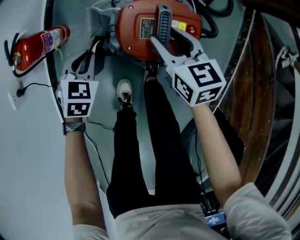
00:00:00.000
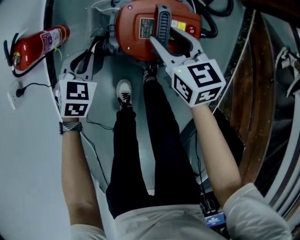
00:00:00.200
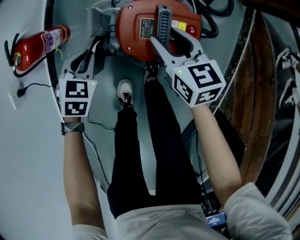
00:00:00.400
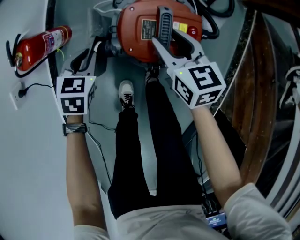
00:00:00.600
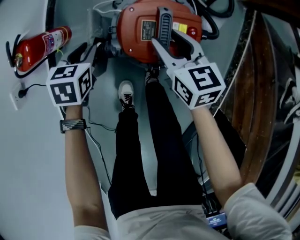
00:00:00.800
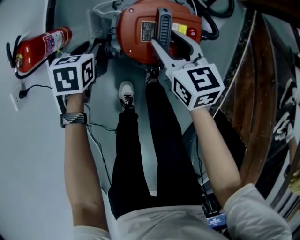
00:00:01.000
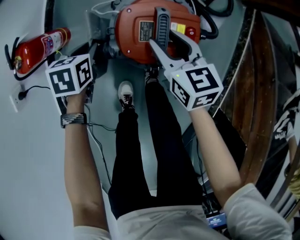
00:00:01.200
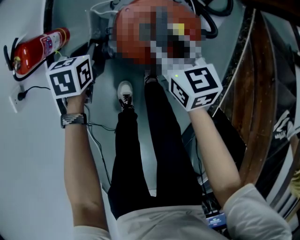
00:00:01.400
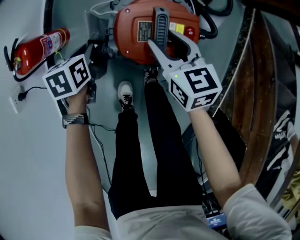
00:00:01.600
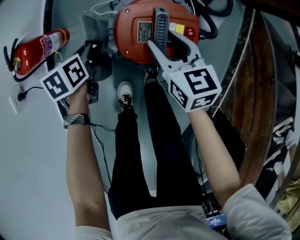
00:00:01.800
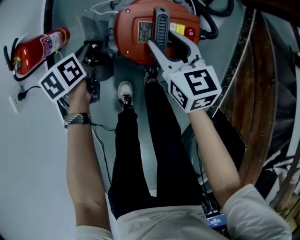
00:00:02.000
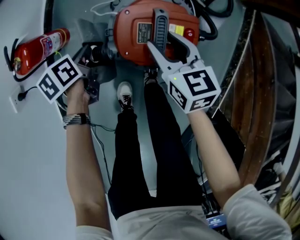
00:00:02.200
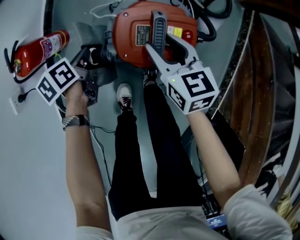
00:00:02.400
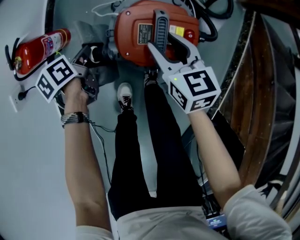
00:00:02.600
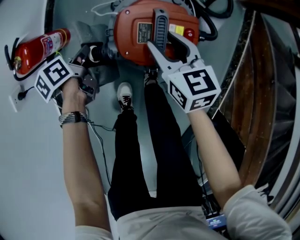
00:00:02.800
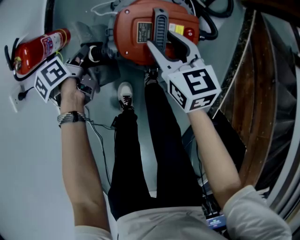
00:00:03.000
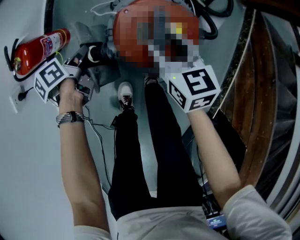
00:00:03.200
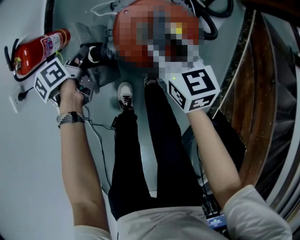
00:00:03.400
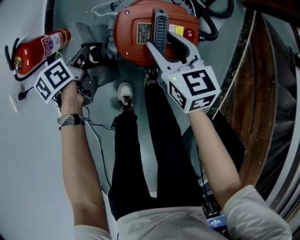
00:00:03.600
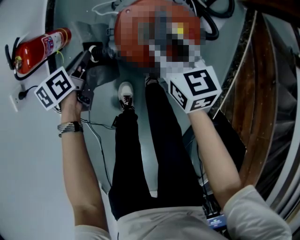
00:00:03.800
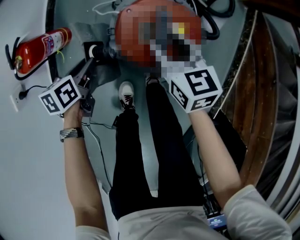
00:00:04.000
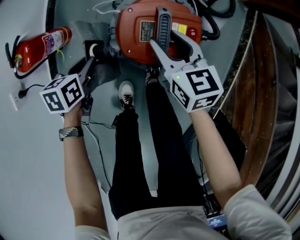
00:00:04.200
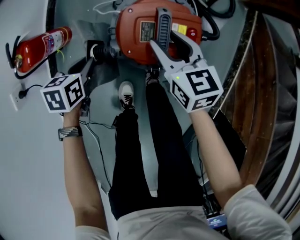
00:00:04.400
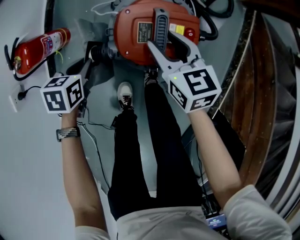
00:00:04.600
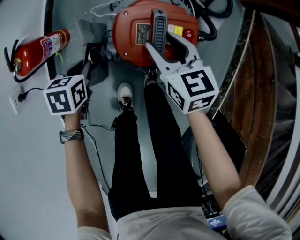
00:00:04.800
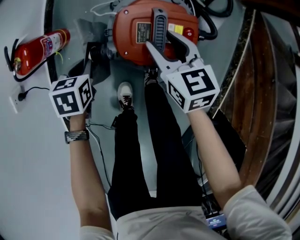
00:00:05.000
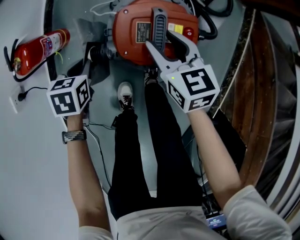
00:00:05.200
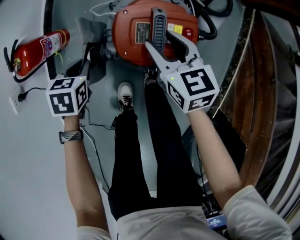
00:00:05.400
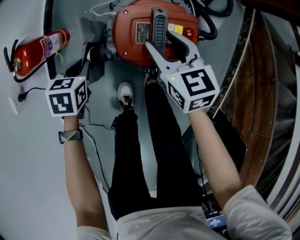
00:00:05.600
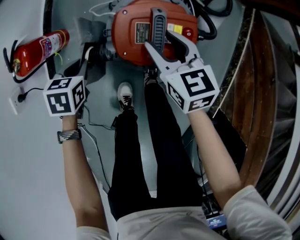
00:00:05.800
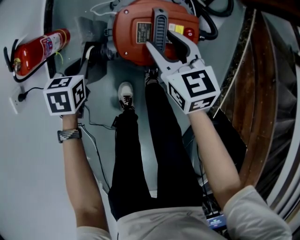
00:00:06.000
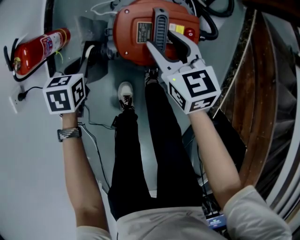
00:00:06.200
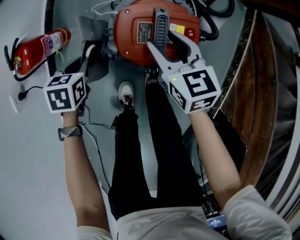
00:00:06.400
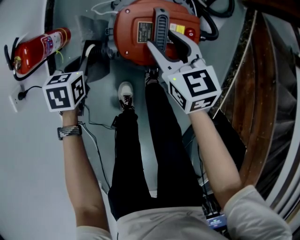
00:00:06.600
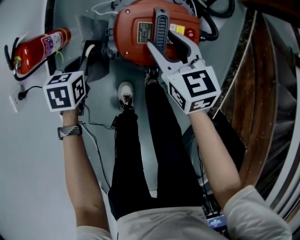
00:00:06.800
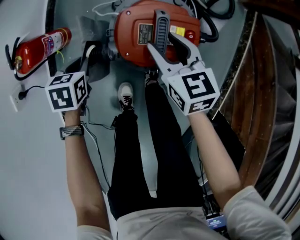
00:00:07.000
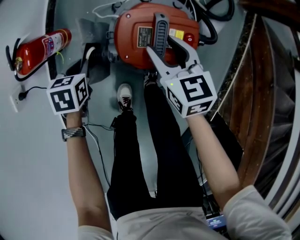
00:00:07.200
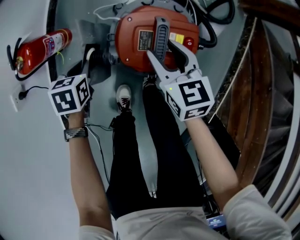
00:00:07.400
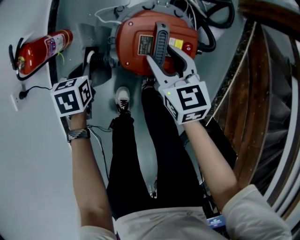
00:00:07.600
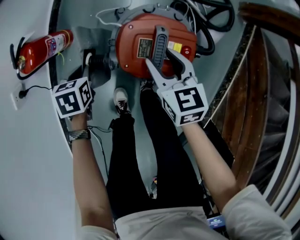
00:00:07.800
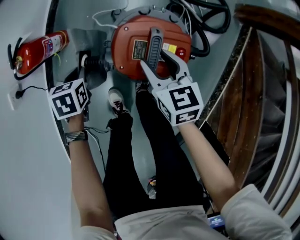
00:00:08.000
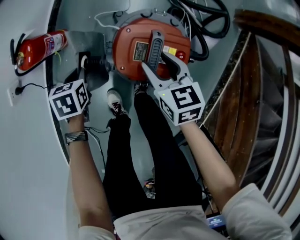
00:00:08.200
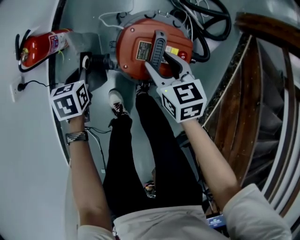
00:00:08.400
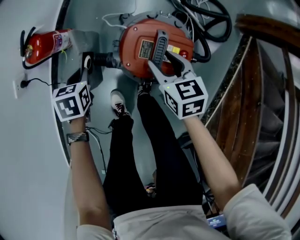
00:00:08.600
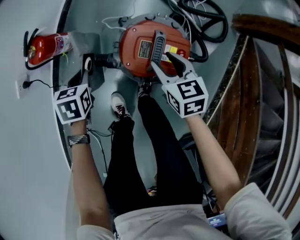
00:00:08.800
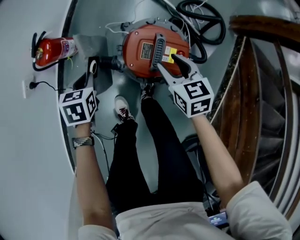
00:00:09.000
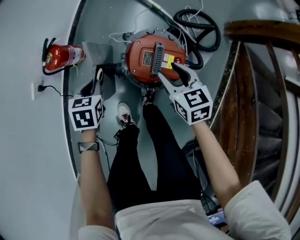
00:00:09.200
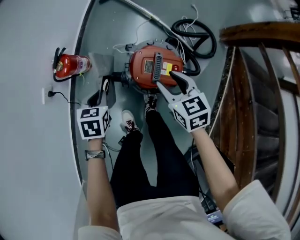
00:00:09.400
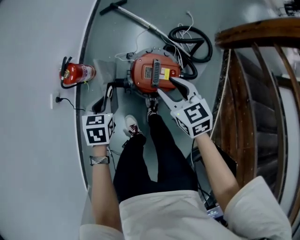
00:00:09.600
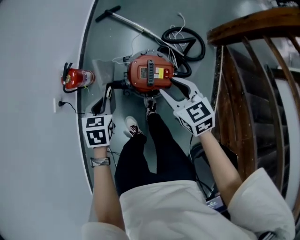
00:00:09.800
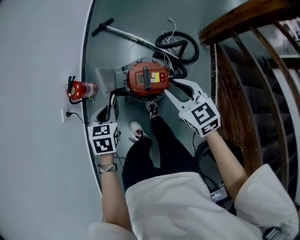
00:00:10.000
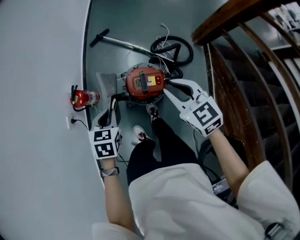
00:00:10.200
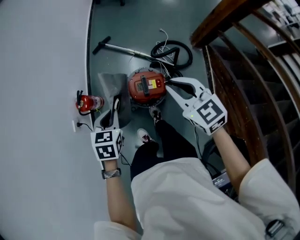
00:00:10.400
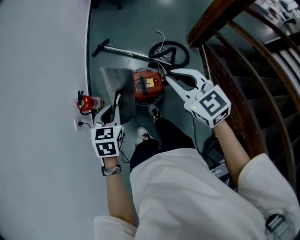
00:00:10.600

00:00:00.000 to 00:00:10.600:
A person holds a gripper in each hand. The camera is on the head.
00:00:00.000 to 00:00:01.600: The left gripper swivels approximately 40 degrees, and opens and closes again.
00:00:01.600 to 00:00:03.000: The left gripper swivels some 40 degrees.
00:00:03.000 to 00:00:04.600: The left gripper twists roughly 50 degrees clockwise, seen from behind.
00:00:04.600 to 00:00:07.600: There are only small adjustments of the grippers.
00:00:07.600 to 00:00:09.000: The left gripper heads upward, covering about 10 cm.
00:00:09.000 to 00:00:10.600: Both grippers travel together upward, approximately 40 cm. The left gripper swivels approximately 30 degrees. The right gripper rotates about 30 degrees, and closes up.

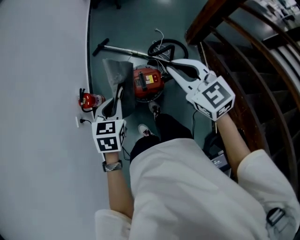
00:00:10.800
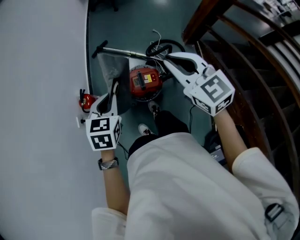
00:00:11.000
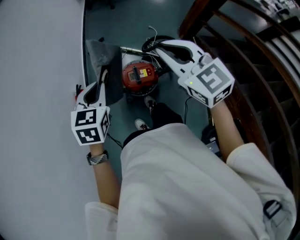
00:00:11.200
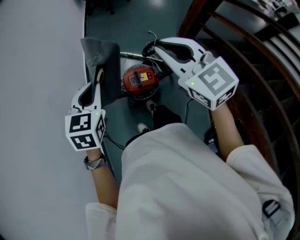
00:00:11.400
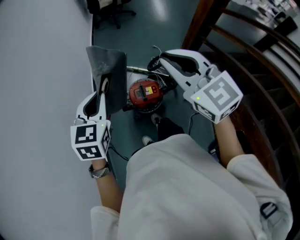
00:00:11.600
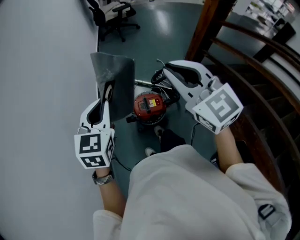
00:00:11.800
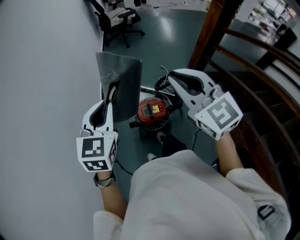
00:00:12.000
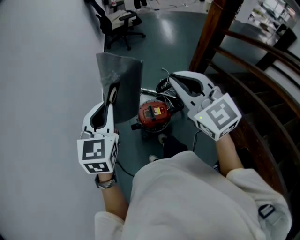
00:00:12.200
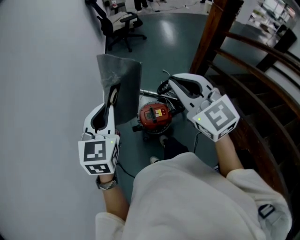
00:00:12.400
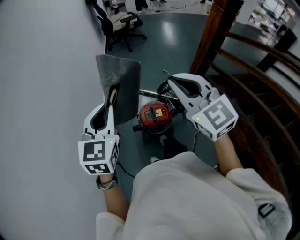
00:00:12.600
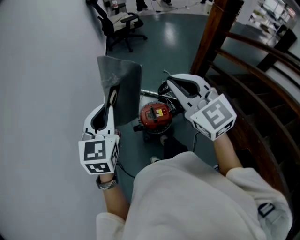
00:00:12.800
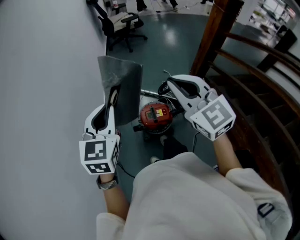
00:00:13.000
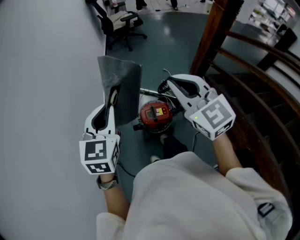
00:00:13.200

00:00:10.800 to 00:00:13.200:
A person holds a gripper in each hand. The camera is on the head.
00:00:10.800 to 00:00:12.000: The grippers both shift upward by approximately 20 cm. The left gripper rotates some 30 degrees.
00:00:12.000 to 00:00:13.200: The grippers move only a little.

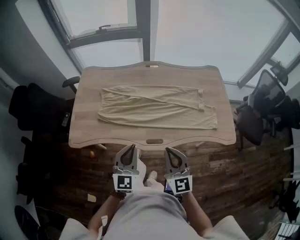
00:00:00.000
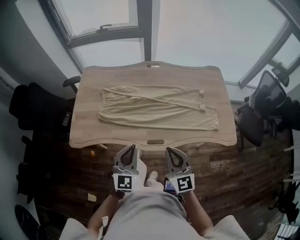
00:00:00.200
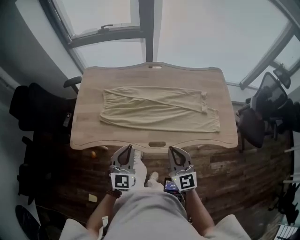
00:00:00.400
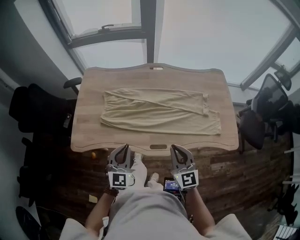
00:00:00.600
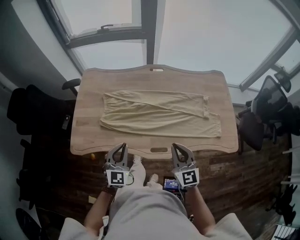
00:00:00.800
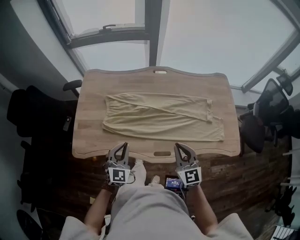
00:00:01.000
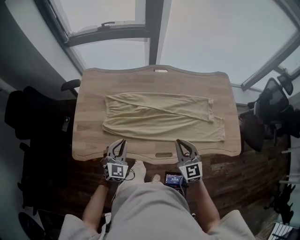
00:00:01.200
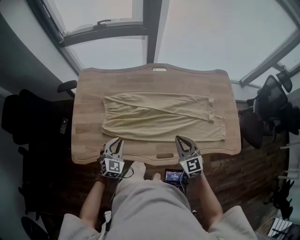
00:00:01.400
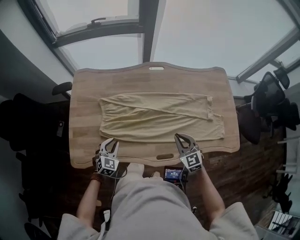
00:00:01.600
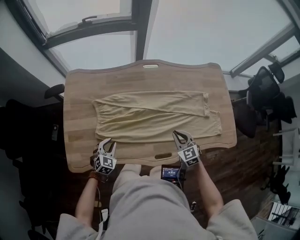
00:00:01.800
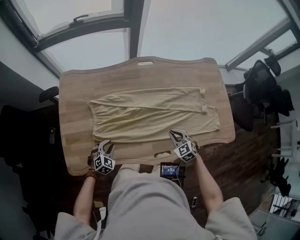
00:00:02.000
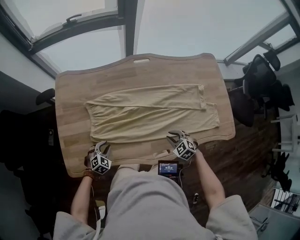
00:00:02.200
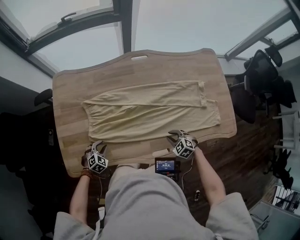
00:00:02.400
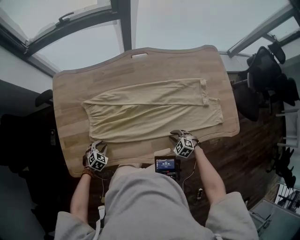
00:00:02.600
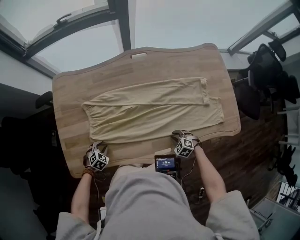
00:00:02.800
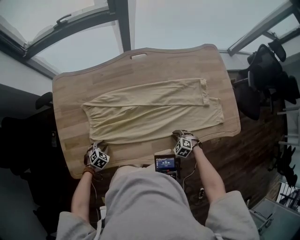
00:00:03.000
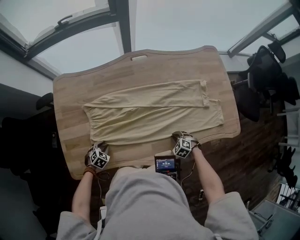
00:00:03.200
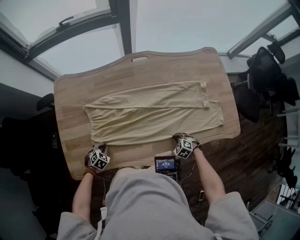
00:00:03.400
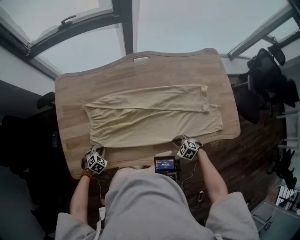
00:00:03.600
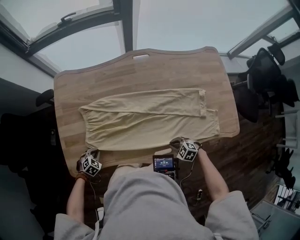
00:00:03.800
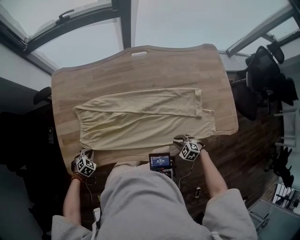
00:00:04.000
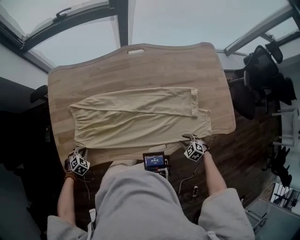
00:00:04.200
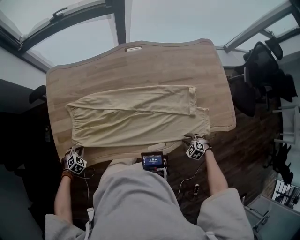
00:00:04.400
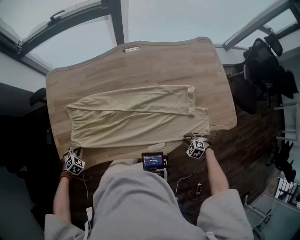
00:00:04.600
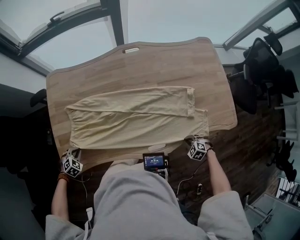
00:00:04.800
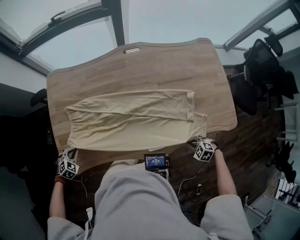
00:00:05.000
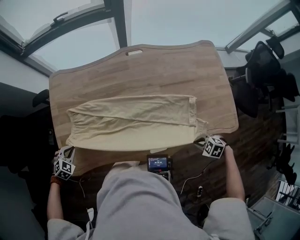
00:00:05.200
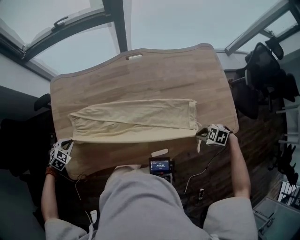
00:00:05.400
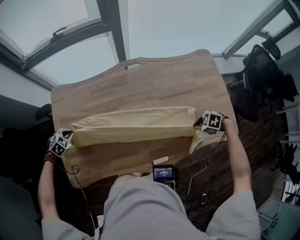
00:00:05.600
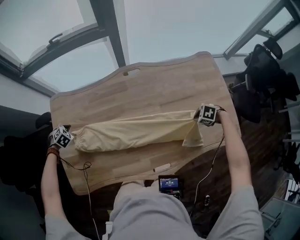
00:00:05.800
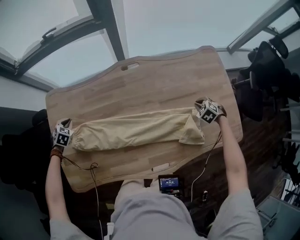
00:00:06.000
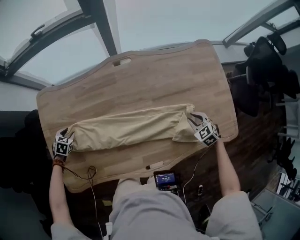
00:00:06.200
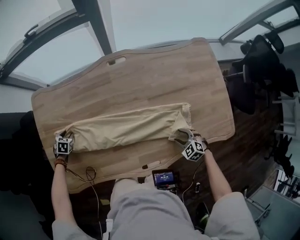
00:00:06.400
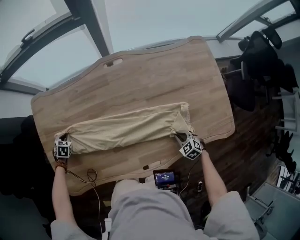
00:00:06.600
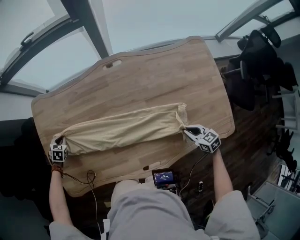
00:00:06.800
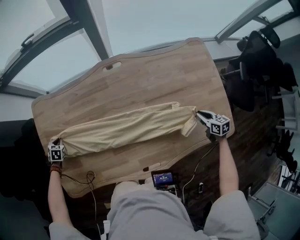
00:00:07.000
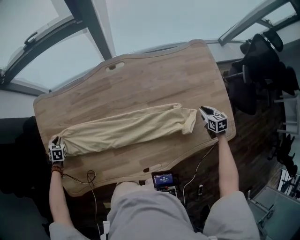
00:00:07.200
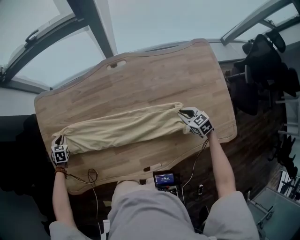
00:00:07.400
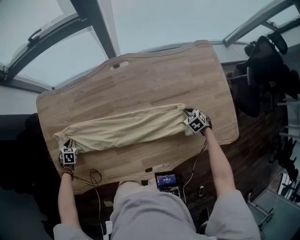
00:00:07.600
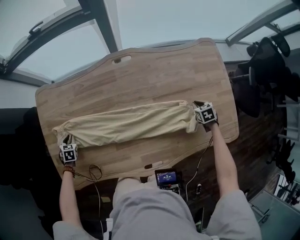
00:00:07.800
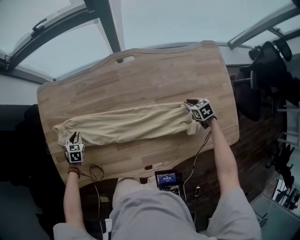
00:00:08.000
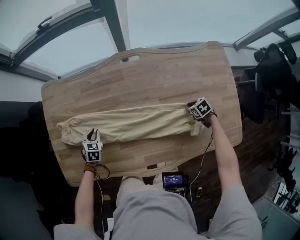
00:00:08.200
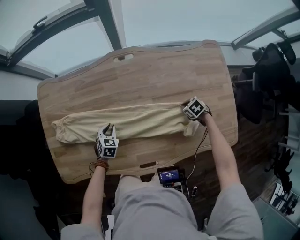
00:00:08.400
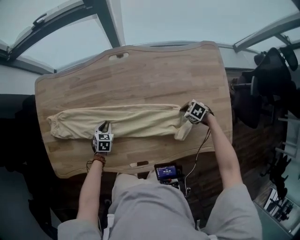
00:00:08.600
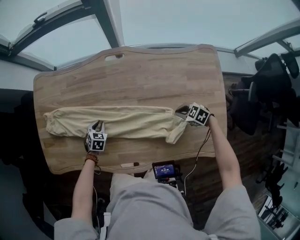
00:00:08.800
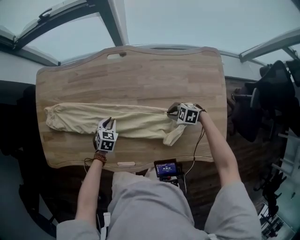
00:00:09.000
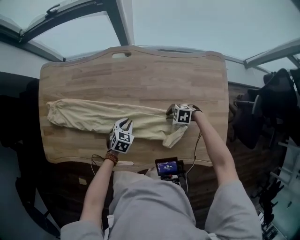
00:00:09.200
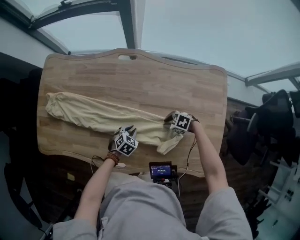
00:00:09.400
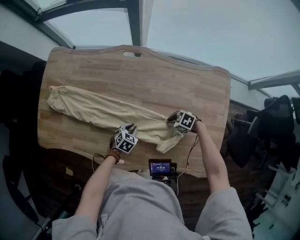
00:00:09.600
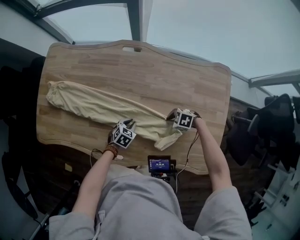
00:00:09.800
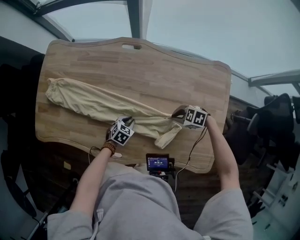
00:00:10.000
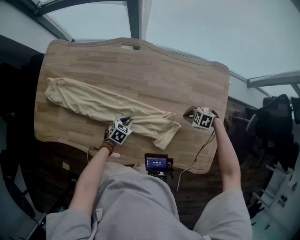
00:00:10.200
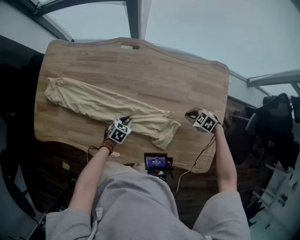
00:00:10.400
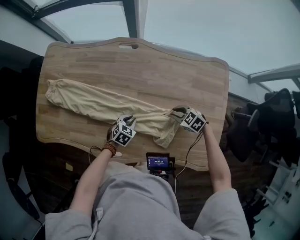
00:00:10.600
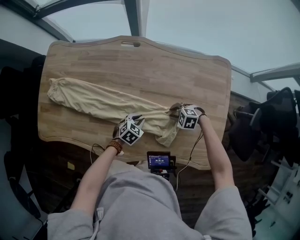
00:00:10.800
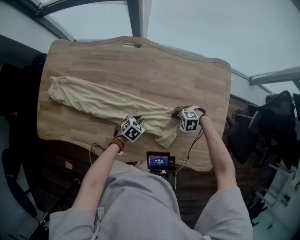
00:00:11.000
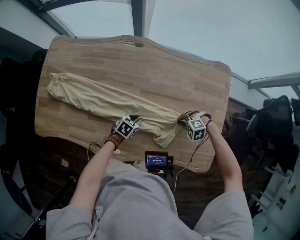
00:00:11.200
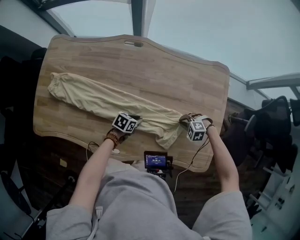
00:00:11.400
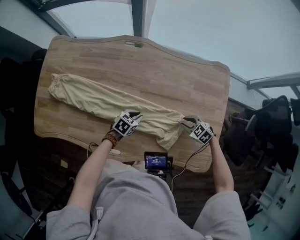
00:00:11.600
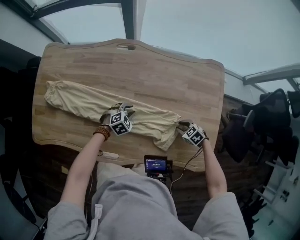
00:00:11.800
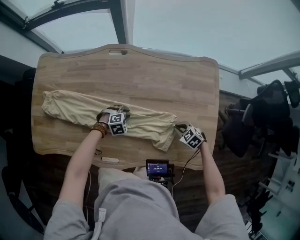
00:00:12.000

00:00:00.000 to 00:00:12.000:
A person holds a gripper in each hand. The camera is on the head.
00:00:00.000 to 00:00:01.600: The left gripper travels forward, downward and to the left by about 35 cm, and swivels roughly 30 degrees, while the right gripper moves forward and downward, approximately 25 cm, and changes its angle by some 30 degrees.
00:00:01.600 to 00:00:03.000: The left gripper moves downward, roughly 15 cm, and tips its fingers downward by approximately 30 degrees; the right gripper travels downward by approximately 25 cm, and angles its fingers downward, by some 40 degrees.
00:00:03.000 to 00:00:04.400: The right gripper ends up some 15 cm from where it was. Meanwhile the left gripper moves approximately 10 cm, and closes up.
00:00:04.400 to 00:00:06.000: The right gripper changes place by about 35 cm, and closes up. The left gripper shifts by about 35 cm.
00:00:06.000 to 00:00:07.600: The right gripper moves up and down over about 10 cm, changing direction 2 times, and opens, then closes again. Meanwhile the left gripper shifts by roughly 15 cm, swivels some 20 degrees, and opens, then closes again.
00:00:07.600 to 00:00:09.000: The left gripper shifts by about 40 cm; the right gripper changes its angle by roughly 60 degrees.
00:00:09.000 to 00:00:10.400: The right gripper shifts by approximately 10 cm. Meanwhile the left gripper ends up some 15 cm from where it was.
00:00:10.400 to 00:00:12.000: The right gripper shifts by some 10 cm, and opens and closes again. Meanwhile the left gripper moves approximately 5 cm, and rotates around the line of its fingers by some 50 degrees, clockwise from behind.
